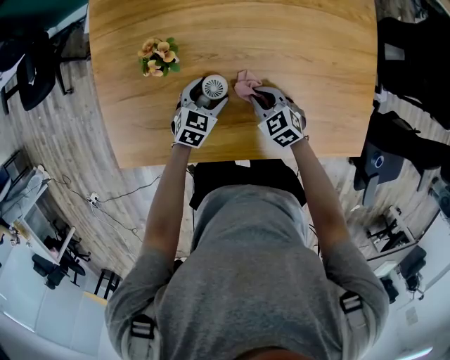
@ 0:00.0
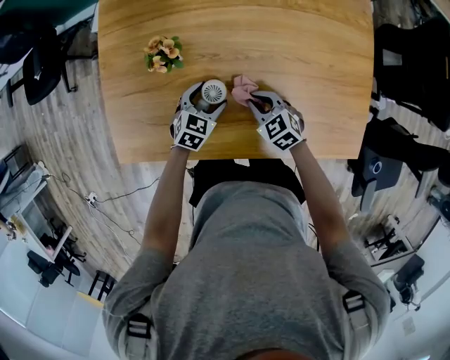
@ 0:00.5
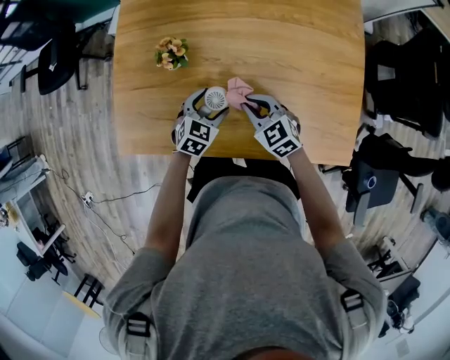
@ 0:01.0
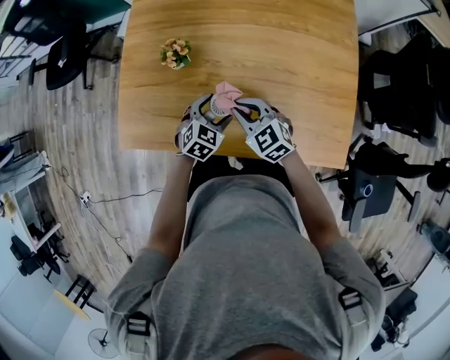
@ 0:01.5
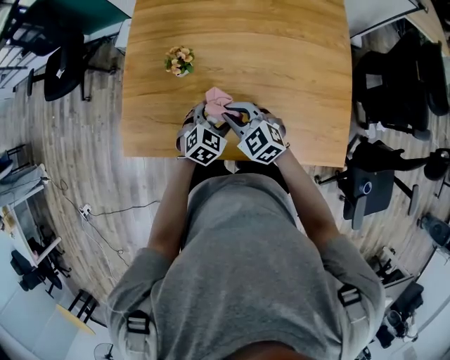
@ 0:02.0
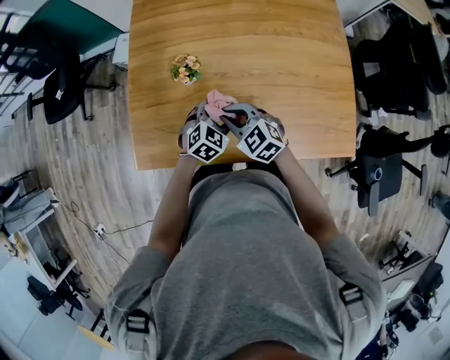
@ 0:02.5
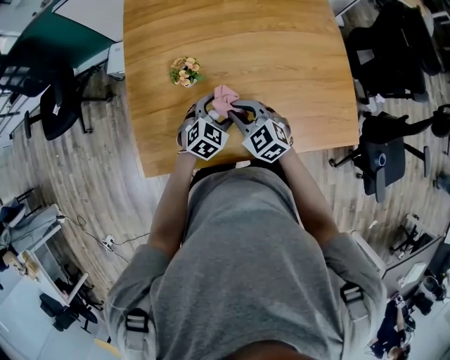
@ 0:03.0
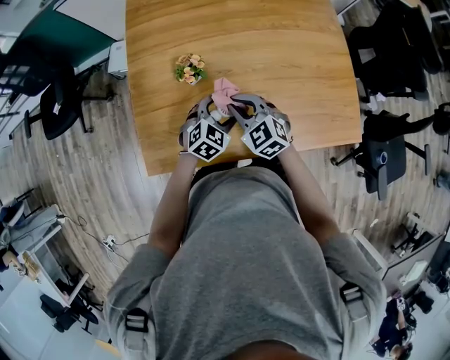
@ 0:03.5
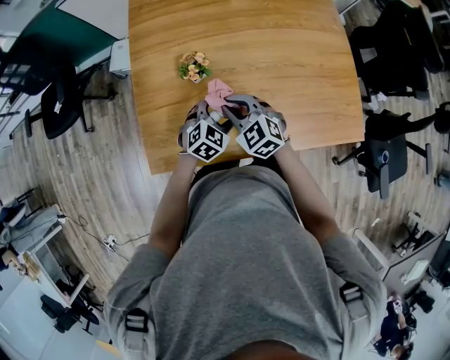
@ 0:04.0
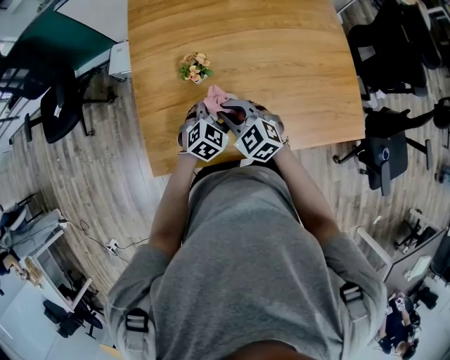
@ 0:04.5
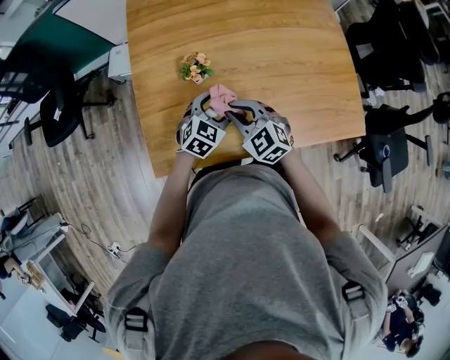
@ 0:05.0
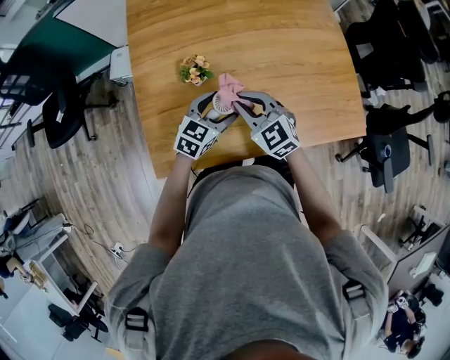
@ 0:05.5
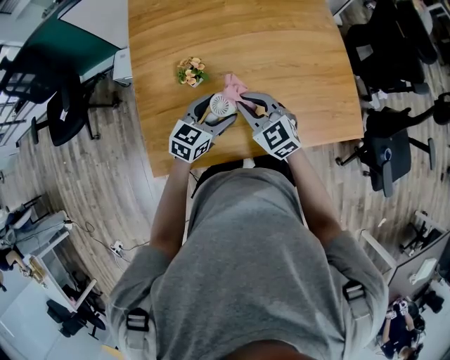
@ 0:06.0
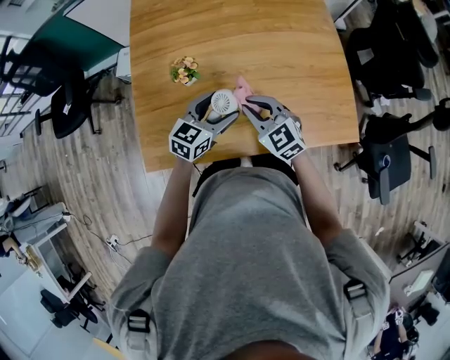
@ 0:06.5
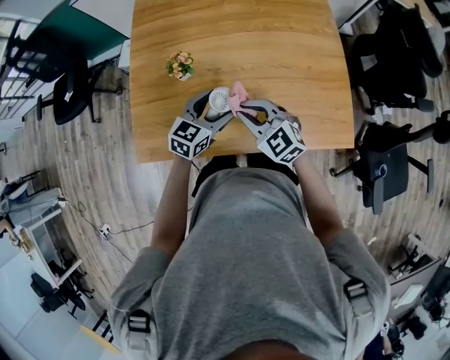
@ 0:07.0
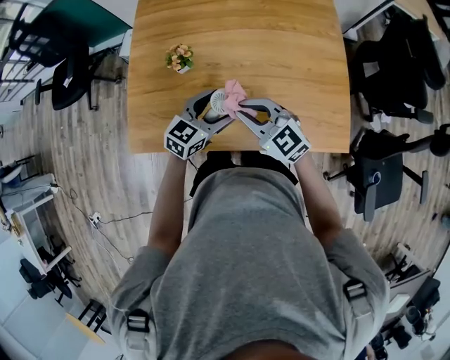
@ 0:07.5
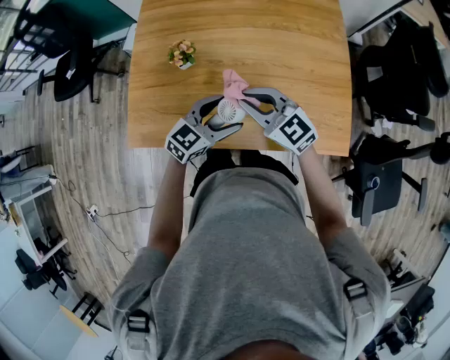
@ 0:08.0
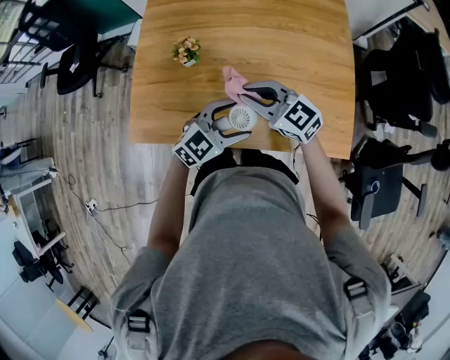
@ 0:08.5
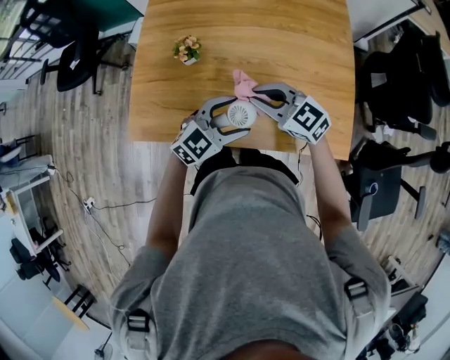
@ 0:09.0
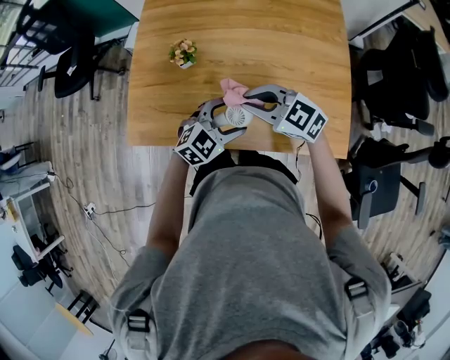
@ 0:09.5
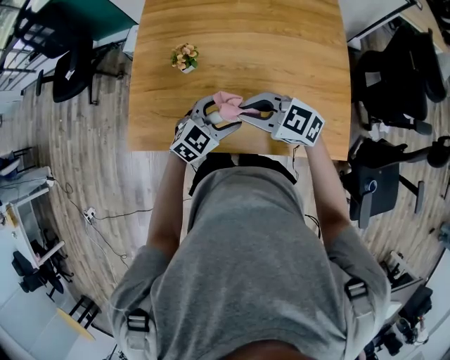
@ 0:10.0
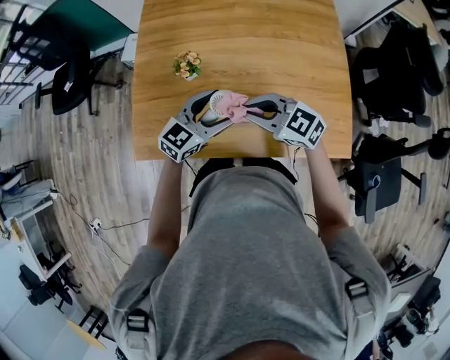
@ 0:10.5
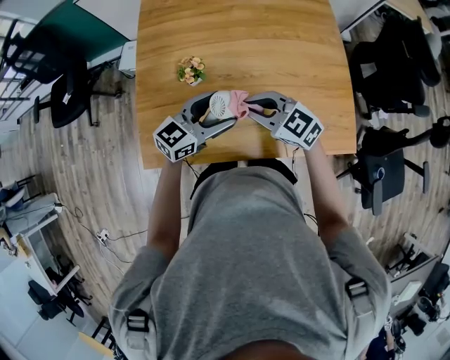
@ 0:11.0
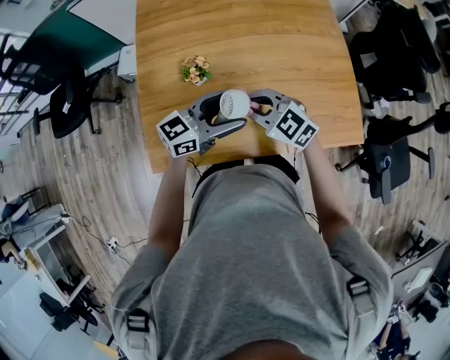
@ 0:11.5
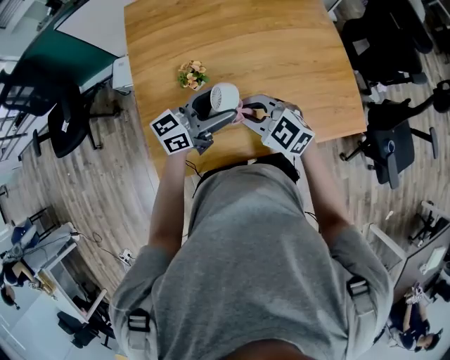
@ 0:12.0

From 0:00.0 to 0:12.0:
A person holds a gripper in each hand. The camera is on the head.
From 0:00.0 to 0:02.0: The right gripper goes roughly 20 cm upward and to the left, and rotates roughly 20 degrees, while the left gripper shifts about 15 cm upward and backward.
From 0:02.0 to 0:04.0: The grippers both shift to the left by about 10 cm.
From 0:04.0 to 0:06.0: The left gripper heads upward, covering approximately 5 cm, and changes its angle by roughly 30 degrees. Meanwhile the right gripper goes roughly 5 cm to the right.
From 0:06.0 to 0:08.0: The left gripper heads to the right and backward, covering about 15 cm. Meanwhile the right gripper travels to the right by roughly 10 cm, and changes its angle by about 30 degrees.
From 0:08.0 to 0:10.0: The right gripper turns by some 20 degrees.
From 0:10.0 to 0:12.0: The right gripper moves roughly 10 cm, and changes its angle by about 30 degrees; the left gripper moves roughly 15 cm, and tilts its fingers approximately 40 degrees upward.

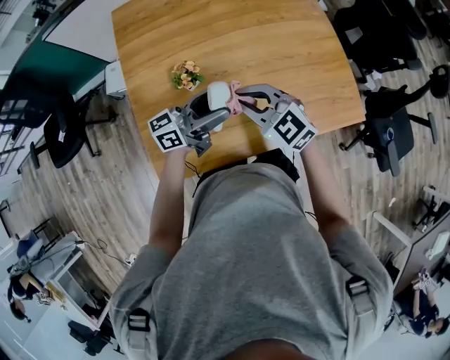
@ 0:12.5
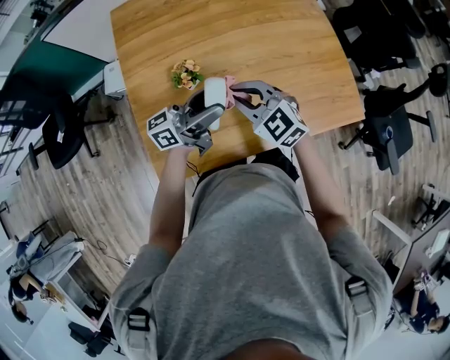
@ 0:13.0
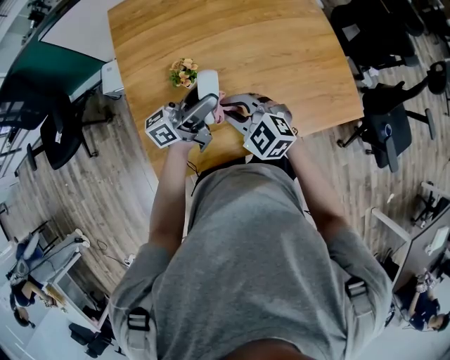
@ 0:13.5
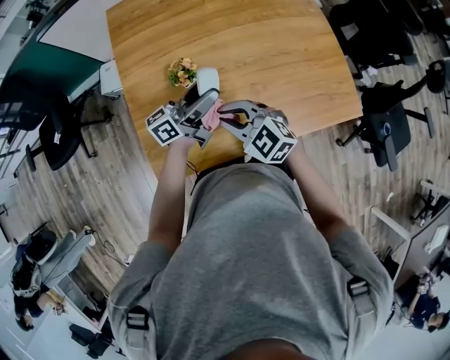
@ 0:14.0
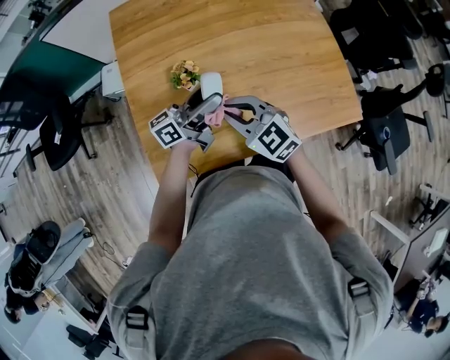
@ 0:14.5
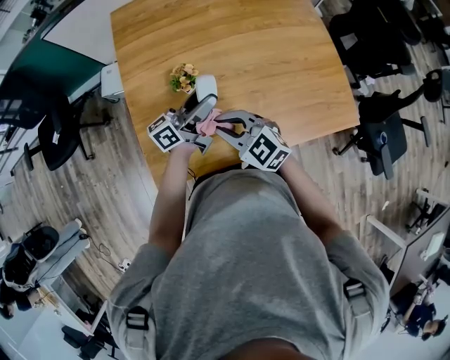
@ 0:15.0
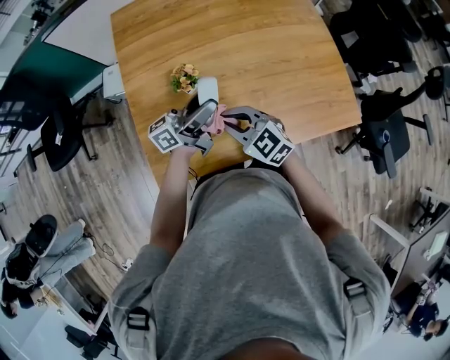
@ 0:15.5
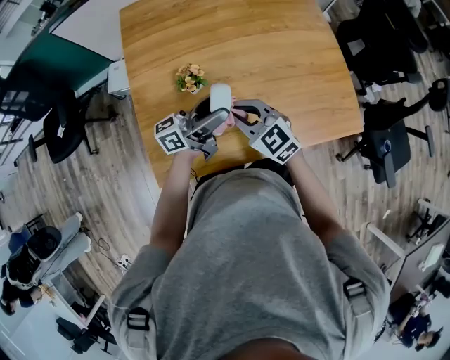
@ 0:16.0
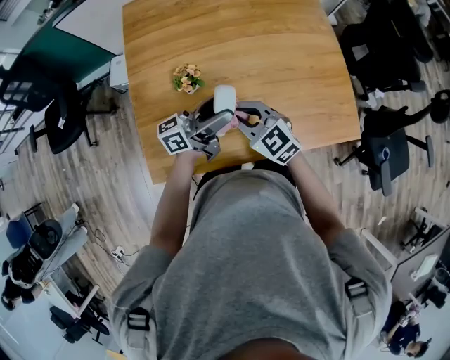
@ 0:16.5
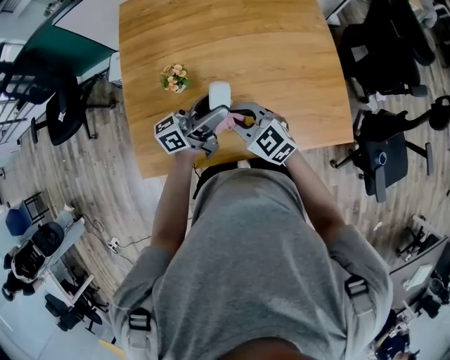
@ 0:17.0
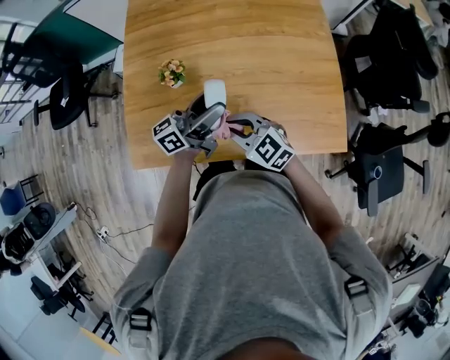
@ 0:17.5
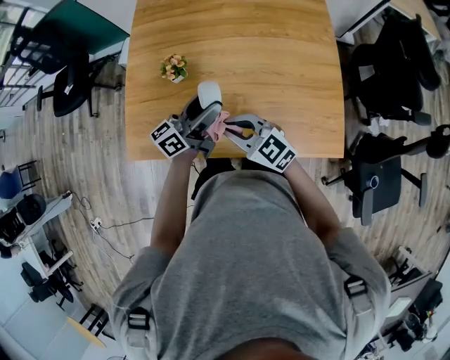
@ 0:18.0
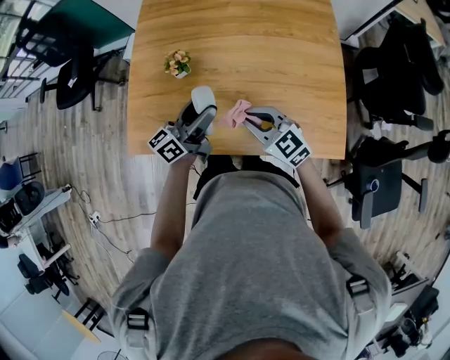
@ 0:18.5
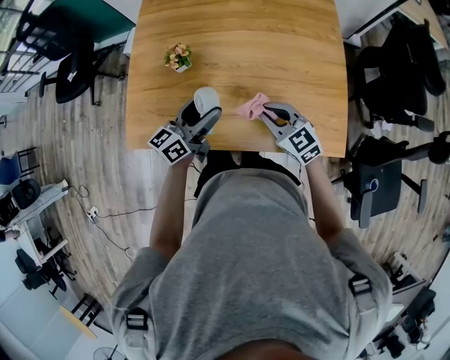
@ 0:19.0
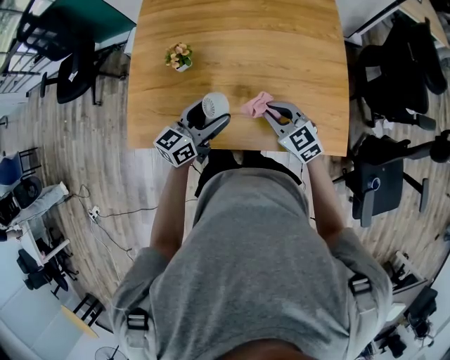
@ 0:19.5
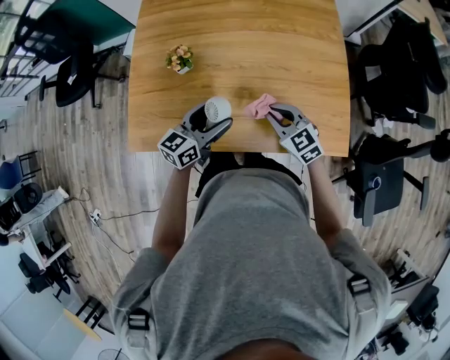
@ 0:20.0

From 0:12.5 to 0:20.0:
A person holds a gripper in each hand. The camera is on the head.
From 0:14.5 to 0:16.5: The left gripper moves about 5 cm.
From 0:16.5 to 0:18.0: The right gripper moves to the right and backward, about 10 cm, while the left gripper goes about 5 cm to the right, and turns by approximately 30 degrees.
From 0:18.0 to 0:20.0: The left gripper travels downward and backward by about 10 cm, and rotates about 30 degrees, while the right gripper goes about 15 cm to the right and downward.

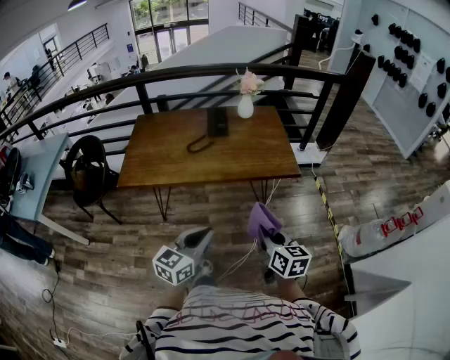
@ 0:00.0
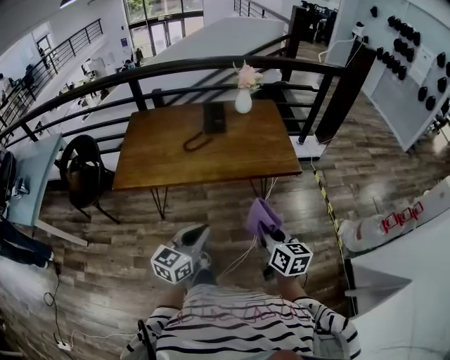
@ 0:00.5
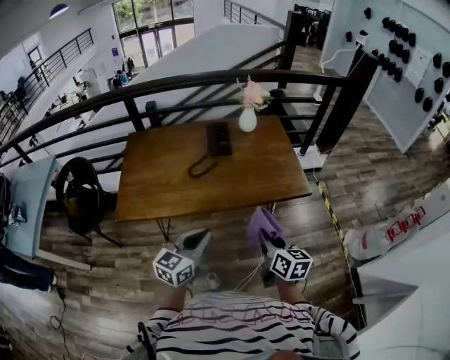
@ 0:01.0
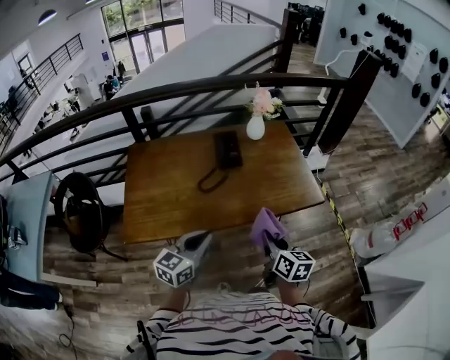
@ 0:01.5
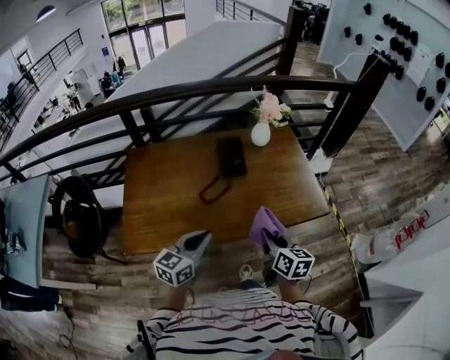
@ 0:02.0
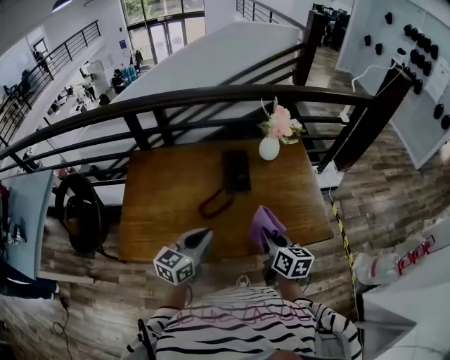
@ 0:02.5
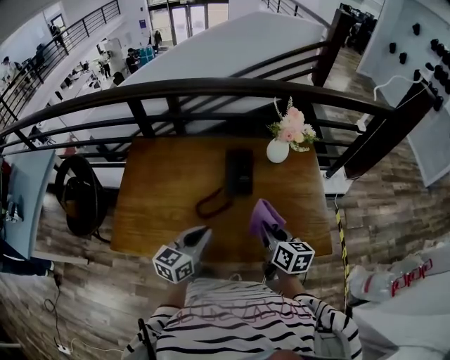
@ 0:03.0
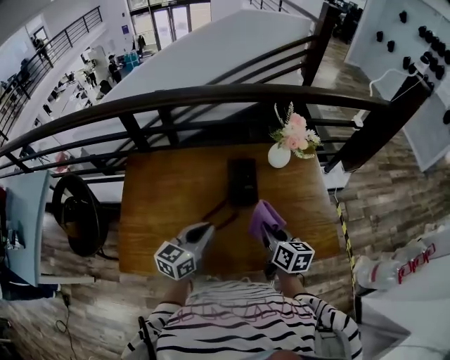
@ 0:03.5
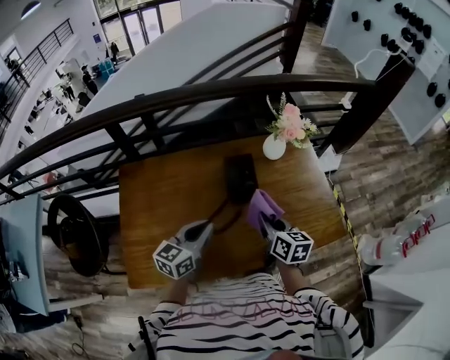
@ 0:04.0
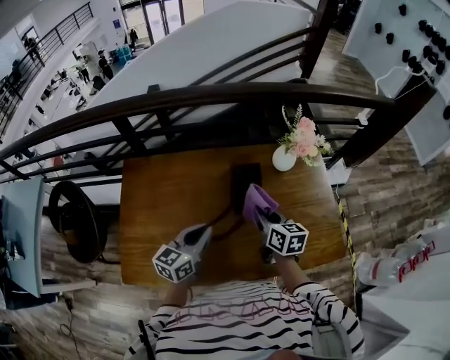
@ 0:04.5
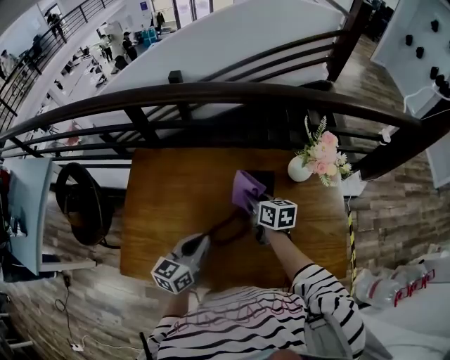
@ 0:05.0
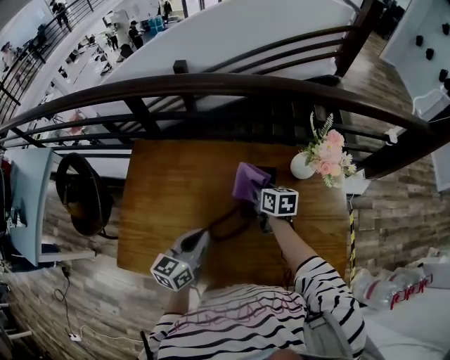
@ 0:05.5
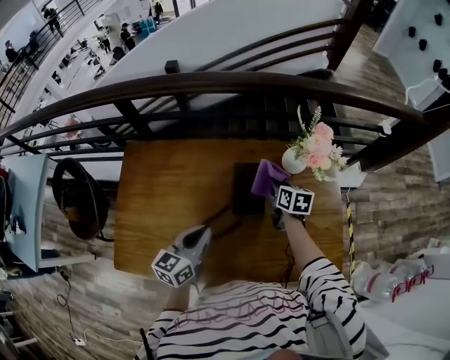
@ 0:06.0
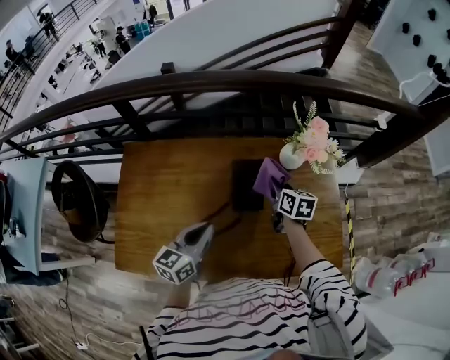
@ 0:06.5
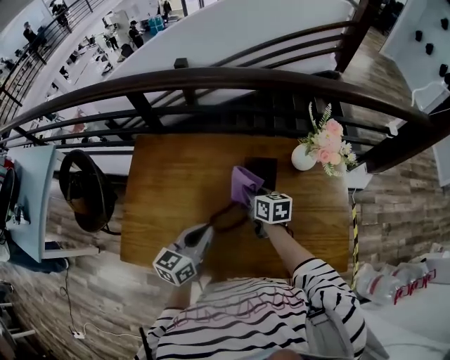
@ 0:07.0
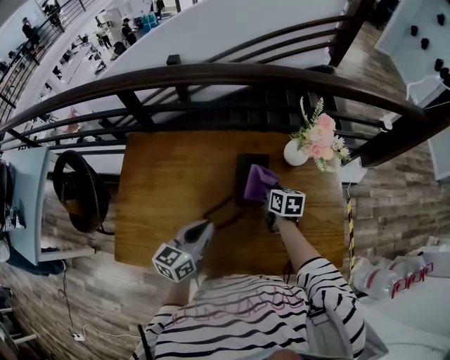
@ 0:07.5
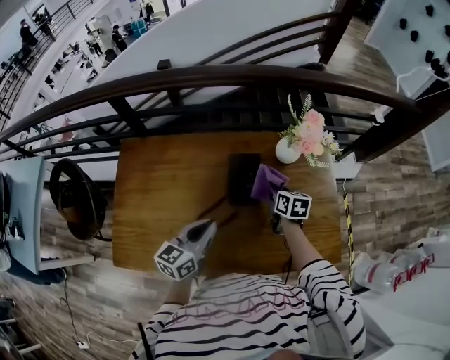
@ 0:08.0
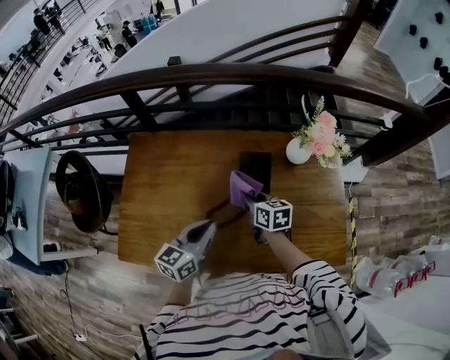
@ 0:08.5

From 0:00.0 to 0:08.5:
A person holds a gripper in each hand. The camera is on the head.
From 0:00.0 to 0:02.0: Both grippers travel together forward and to the left, approximately 40 cm.
From 0:02.0 to 0:04.0: The grippers both shift forward by roughly 25 cm.
From 0:04.0 to 0:06.5: The right gripper is displaced forward by about 20 cm; the left gripper goes roughly 5 cm forward.
From 0:06.5 to 0:08.5: The right gripper goes left and right, some 15 cm each way, reversing 2 times.
